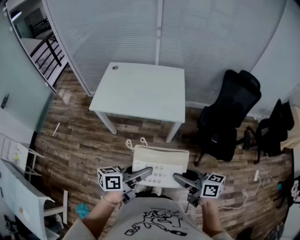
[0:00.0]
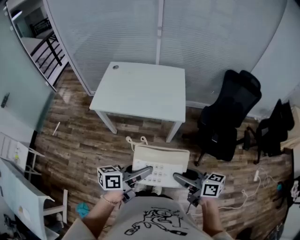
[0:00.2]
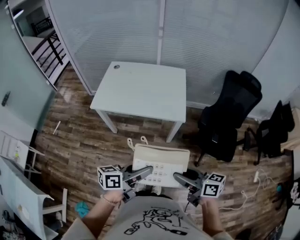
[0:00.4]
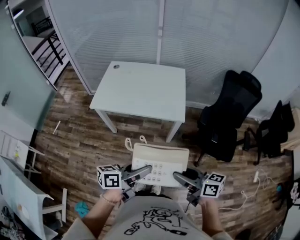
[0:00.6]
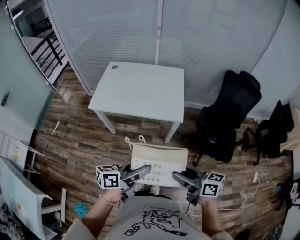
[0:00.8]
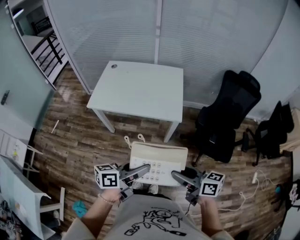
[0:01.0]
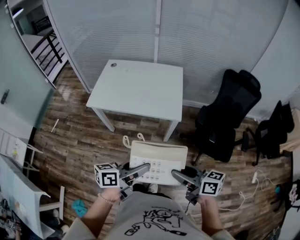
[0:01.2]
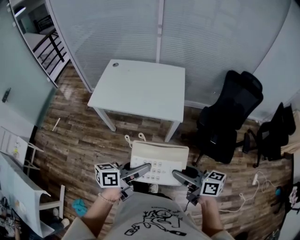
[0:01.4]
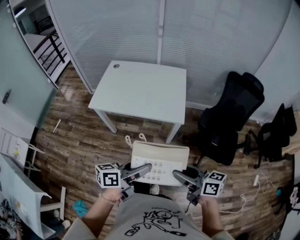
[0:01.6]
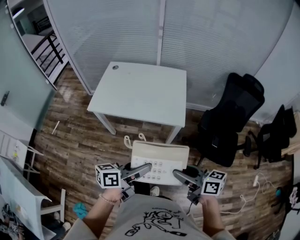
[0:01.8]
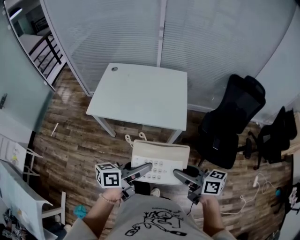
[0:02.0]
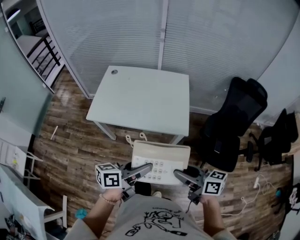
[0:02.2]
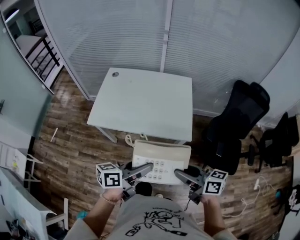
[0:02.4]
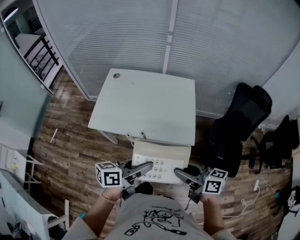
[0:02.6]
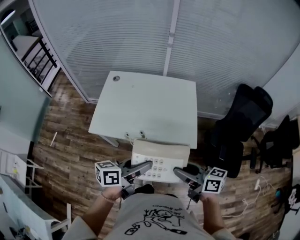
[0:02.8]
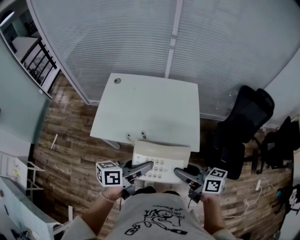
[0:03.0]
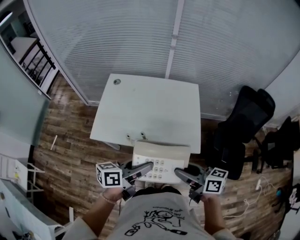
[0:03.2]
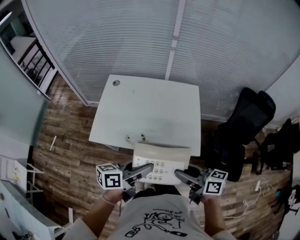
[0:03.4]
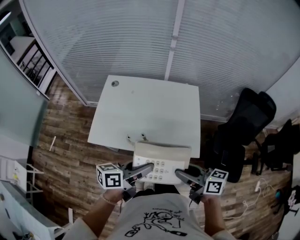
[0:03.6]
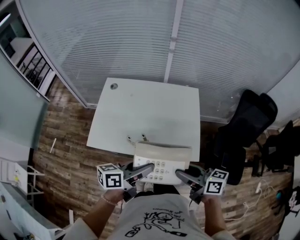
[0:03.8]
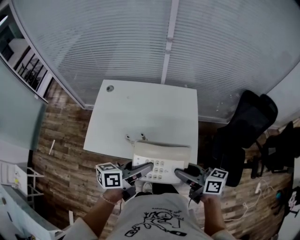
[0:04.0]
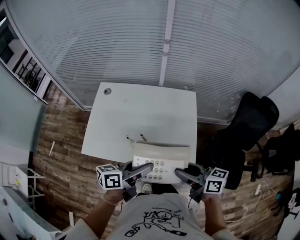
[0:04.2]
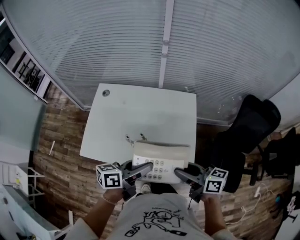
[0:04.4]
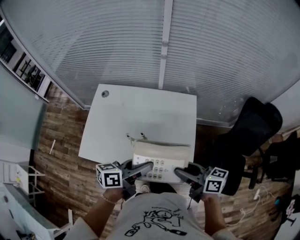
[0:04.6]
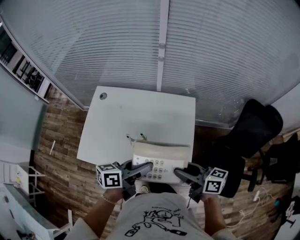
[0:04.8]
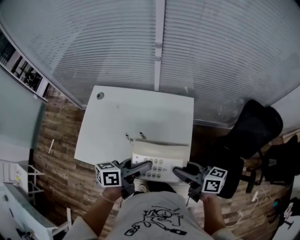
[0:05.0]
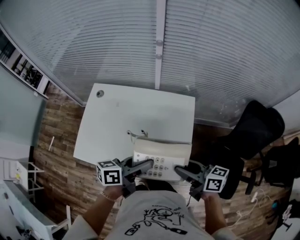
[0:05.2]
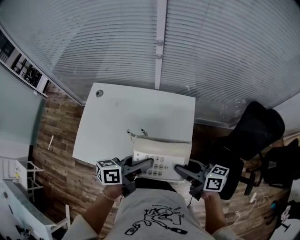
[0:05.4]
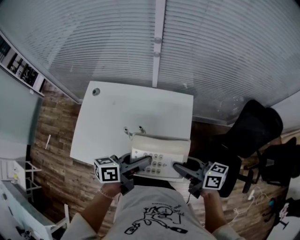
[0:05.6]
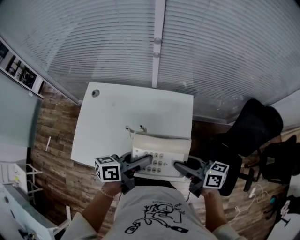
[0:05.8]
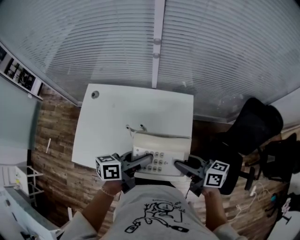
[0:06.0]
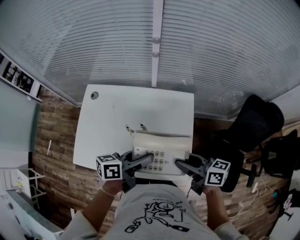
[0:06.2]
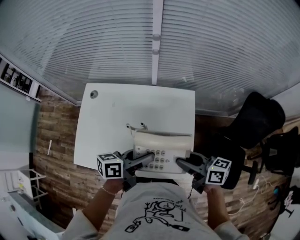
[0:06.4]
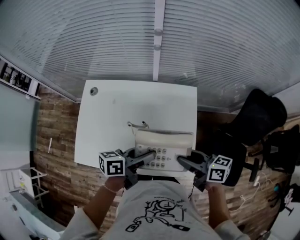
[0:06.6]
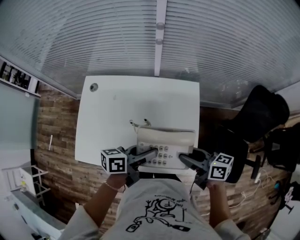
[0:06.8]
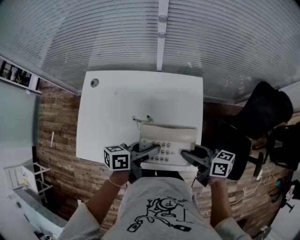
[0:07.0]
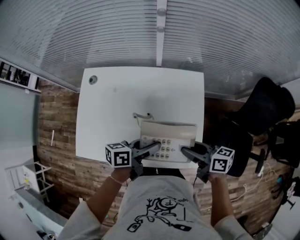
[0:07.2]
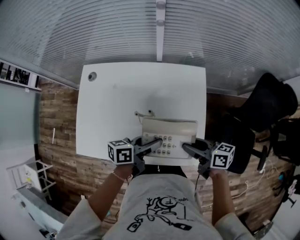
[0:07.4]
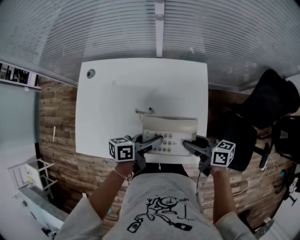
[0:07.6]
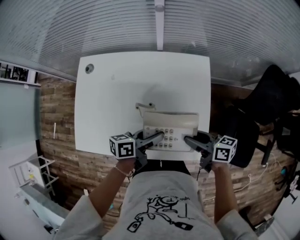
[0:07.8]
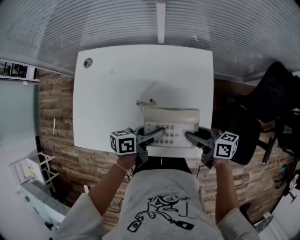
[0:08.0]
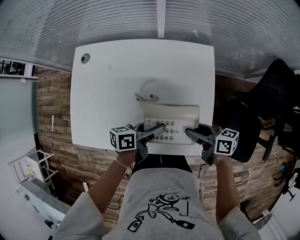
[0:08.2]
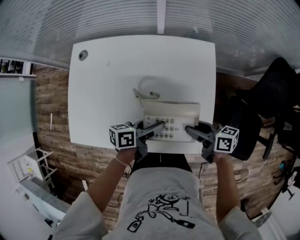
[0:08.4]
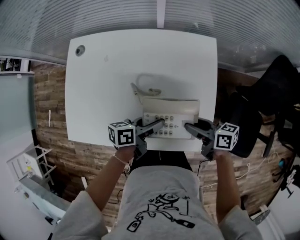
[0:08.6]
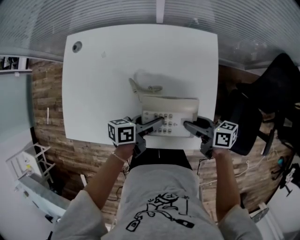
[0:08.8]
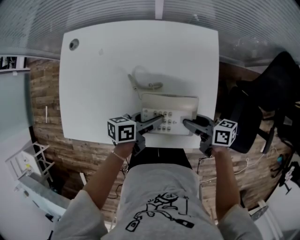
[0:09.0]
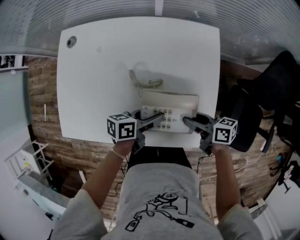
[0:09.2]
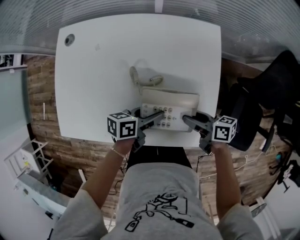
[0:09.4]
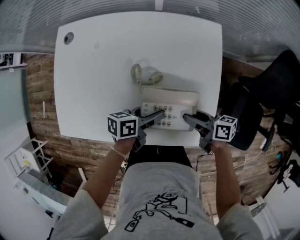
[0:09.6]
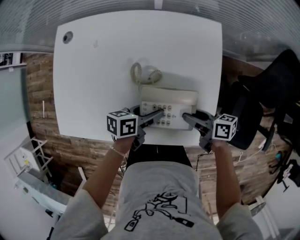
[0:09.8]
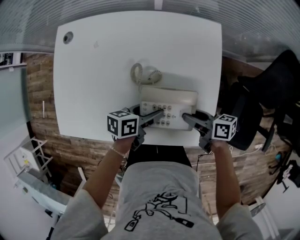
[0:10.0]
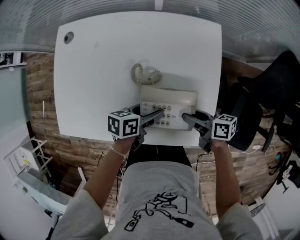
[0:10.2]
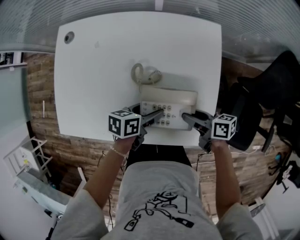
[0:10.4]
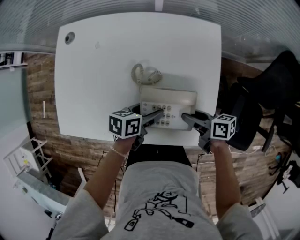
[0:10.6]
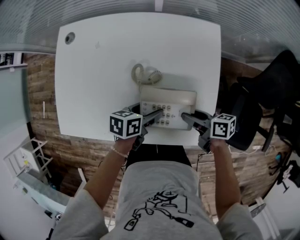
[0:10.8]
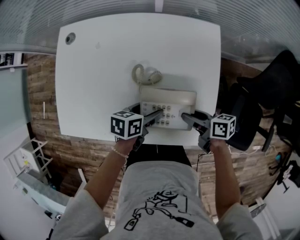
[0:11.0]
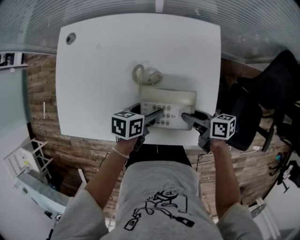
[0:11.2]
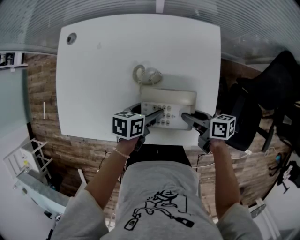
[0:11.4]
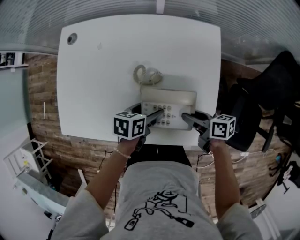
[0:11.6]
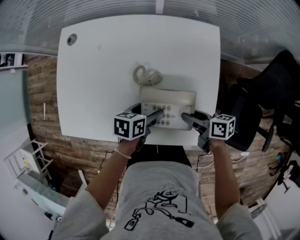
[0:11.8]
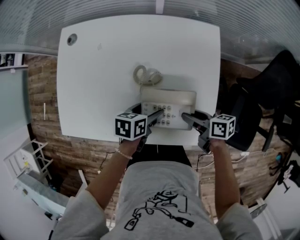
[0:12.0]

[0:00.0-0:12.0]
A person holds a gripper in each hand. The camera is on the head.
0:00.0 to 0:01.6: The grippers stay close to where they were, moving slightly.
0:01.6 to 0:03.0: The two grippers go roughly 25 cm forward and to the left.
0:03.0 to 0:04.4: Both grippers travel together forward, roughly 15 cm.
0:04.4 to 0:06.0: The two grippers go approximately 10 cm forward.
0:06.0 to 0:07.6: The grippers both shift downward by approximately 15 cm.
0:07.6 to 0:09.0: Both grippers move downward, roughly 10 cm.
0:09.0 to 0:10.4: There are only small adjustments of the grippers.
0:10.4 to 0:12.0: The grippers stay close to where they were, moving slightly.

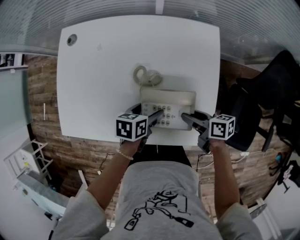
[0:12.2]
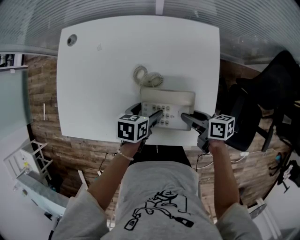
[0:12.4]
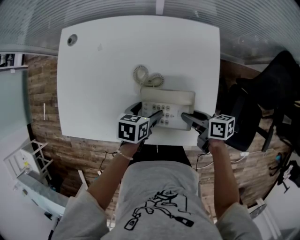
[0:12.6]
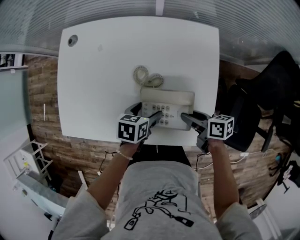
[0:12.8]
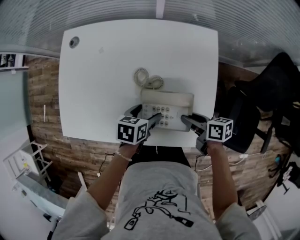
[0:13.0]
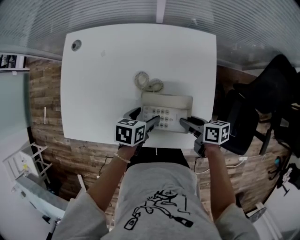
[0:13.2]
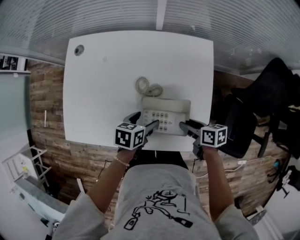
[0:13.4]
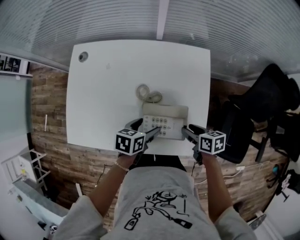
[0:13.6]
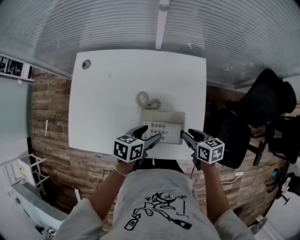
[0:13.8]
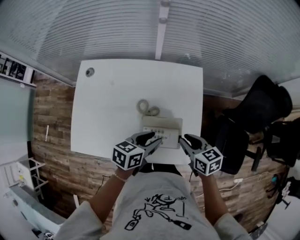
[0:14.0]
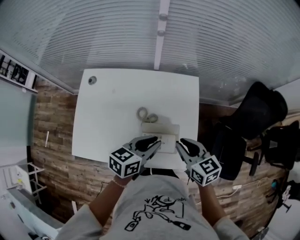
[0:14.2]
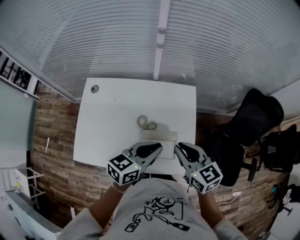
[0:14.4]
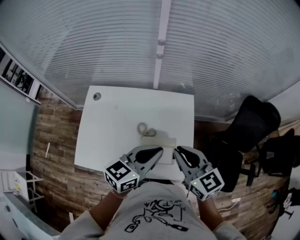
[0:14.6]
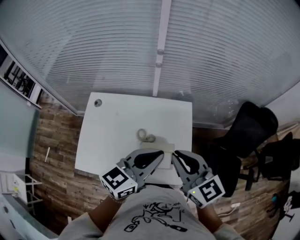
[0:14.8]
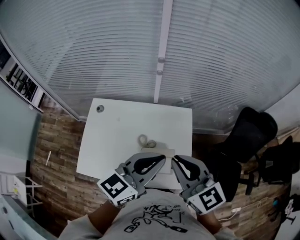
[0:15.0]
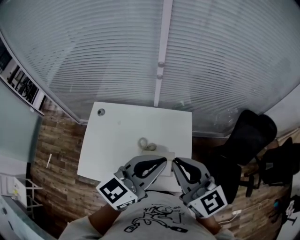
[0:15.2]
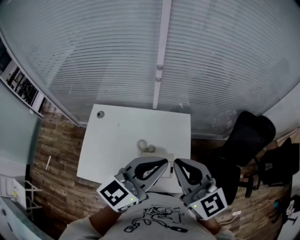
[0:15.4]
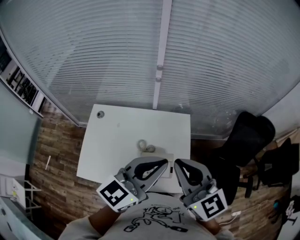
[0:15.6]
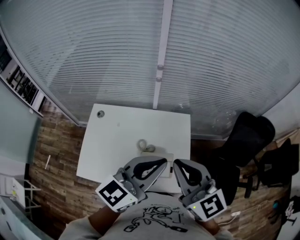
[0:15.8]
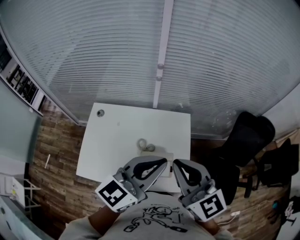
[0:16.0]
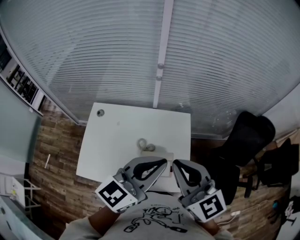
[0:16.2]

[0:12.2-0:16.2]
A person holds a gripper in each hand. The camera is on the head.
0:12.2 to 0:13.6: The left gripper is displaced upward by some 5 cm.
0:13.6 to 0:14.8: Both grippers travel together upward, approximately 35 cm. The right gripper points its fingers some 40 degrees further upward, and closes up; the left gripper tips its fingers upward by roughly 40 degrees, and closes up.
0:14.8 to 0:16.2: The grippers both shift upward by about 10 cm.

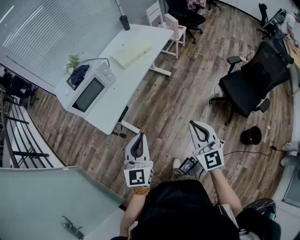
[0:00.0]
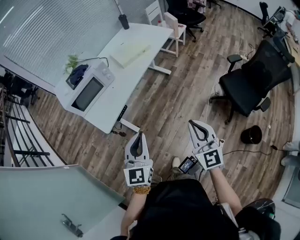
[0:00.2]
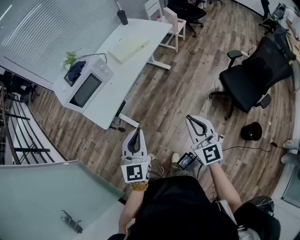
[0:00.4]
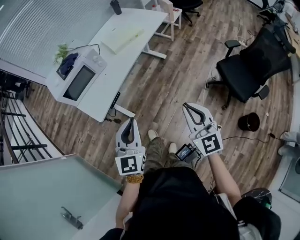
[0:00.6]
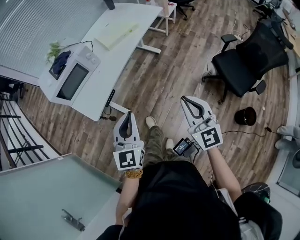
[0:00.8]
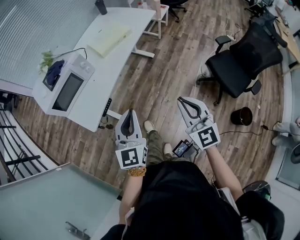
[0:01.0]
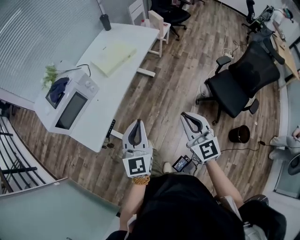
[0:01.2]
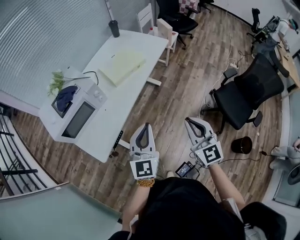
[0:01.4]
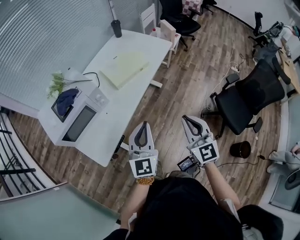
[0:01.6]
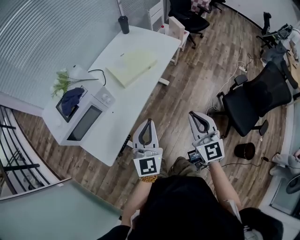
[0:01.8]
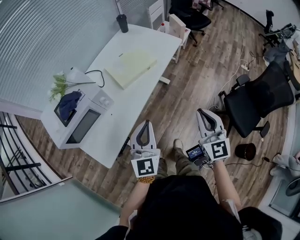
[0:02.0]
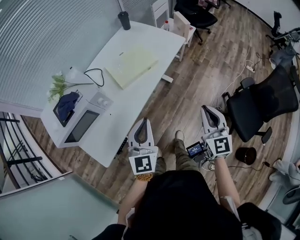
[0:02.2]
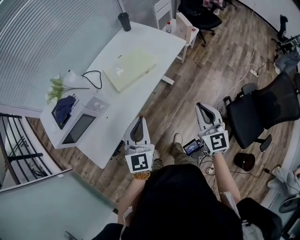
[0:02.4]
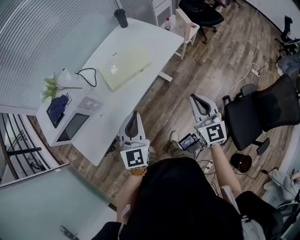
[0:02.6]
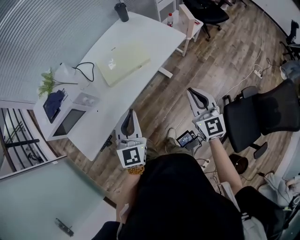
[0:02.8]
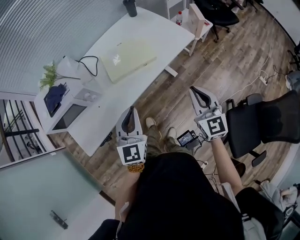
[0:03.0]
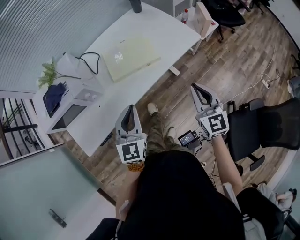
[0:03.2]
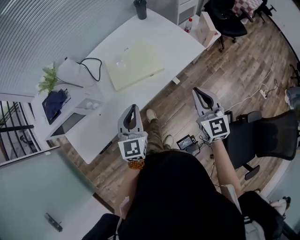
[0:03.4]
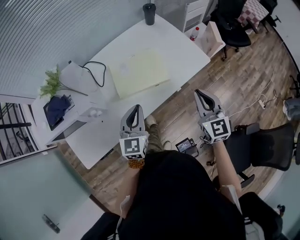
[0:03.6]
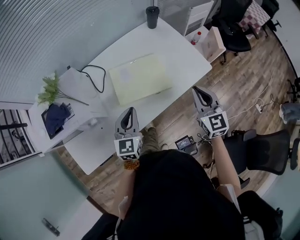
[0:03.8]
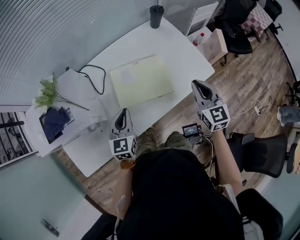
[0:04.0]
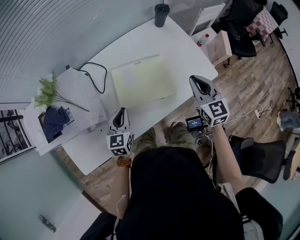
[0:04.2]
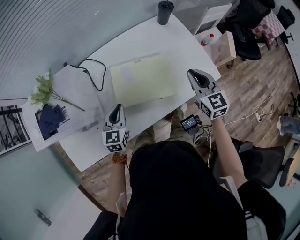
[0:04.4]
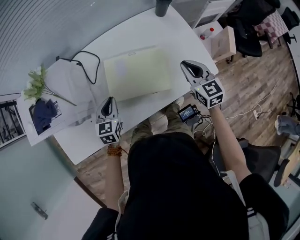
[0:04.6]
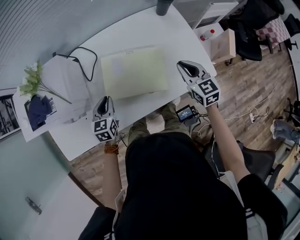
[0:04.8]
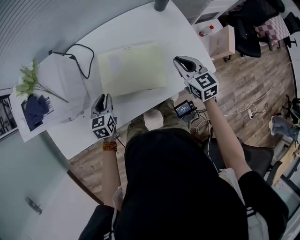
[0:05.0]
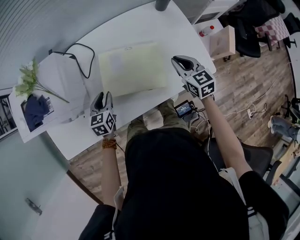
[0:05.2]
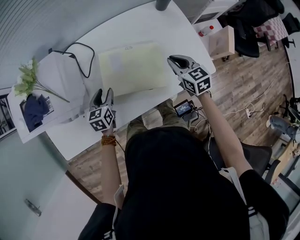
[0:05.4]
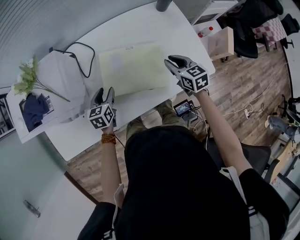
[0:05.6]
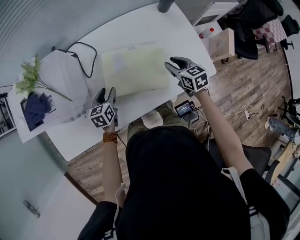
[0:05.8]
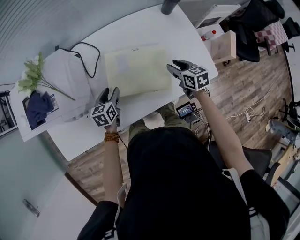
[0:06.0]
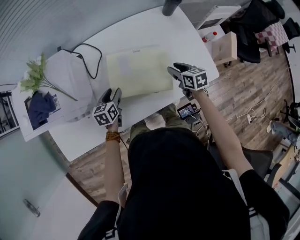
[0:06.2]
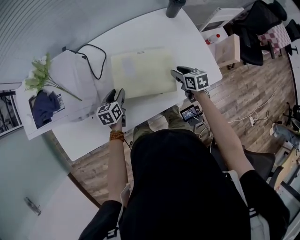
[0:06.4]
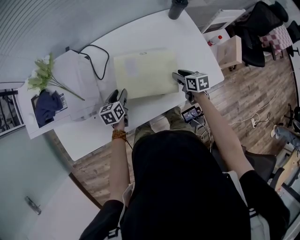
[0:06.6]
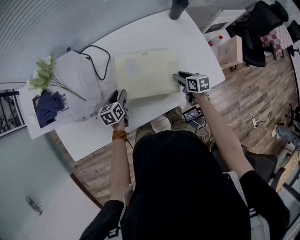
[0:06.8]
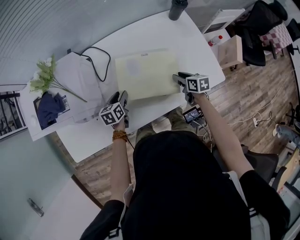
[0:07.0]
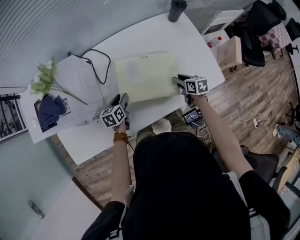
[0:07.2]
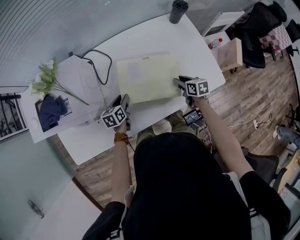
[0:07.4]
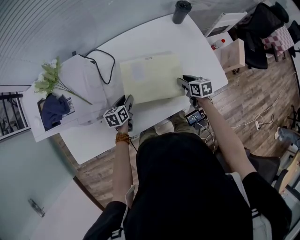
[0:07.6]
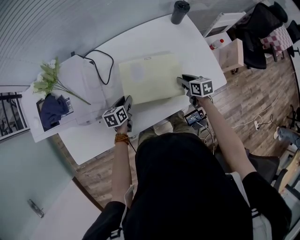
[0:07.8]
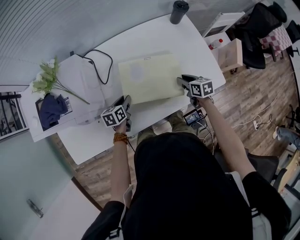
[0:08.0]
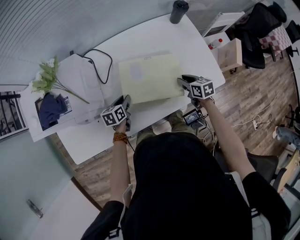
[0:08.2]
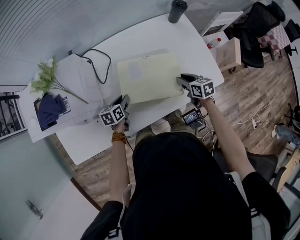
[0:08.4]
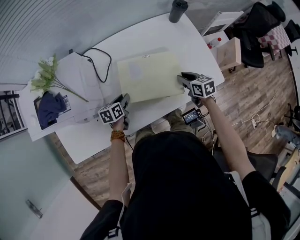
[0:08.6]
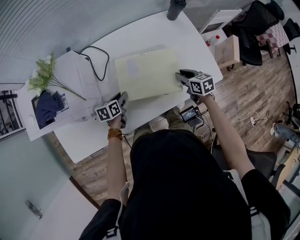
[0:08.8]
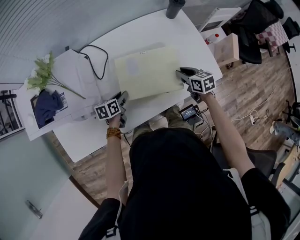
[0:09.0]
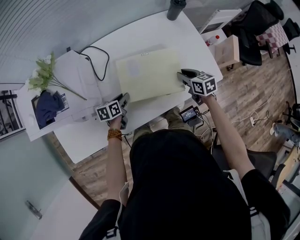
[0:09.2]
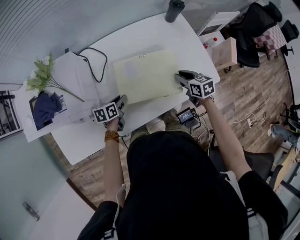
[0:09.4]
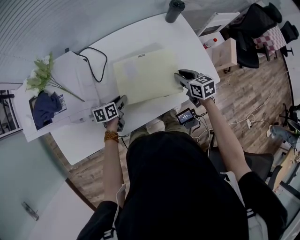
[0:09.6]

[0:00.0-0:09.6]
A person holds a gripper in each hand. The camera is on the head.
0:00.0 to 0:01.6: The two grippers go approximately 25 cm forward.
0:01.6 to 0:03.2: The right gripper travels forward and to the right by roughly 35 cm. Meanwhile the left gripper travels forward and to the right by about 20 cm, and changes its angle by roughly 20 degrees.
0:03.2 to 0:04.8: The left gripper heads forward and downward, covering approximately 30 cm, and turns by about 30 degrees. The right gripper moves forward, about 35 cm, and rotates some 30 degrees.
0:04.8 to 0:06.4: The right gripper shifts approximately 15 cm downward, turns by approximately 30 degrees, and opens its fingers. Meanwhile the left gripper shifts approximately 5 cm downward, and opens up.
0:06.4 to 0:08.0: The grippers stay close to where they were, moving slightly.
0:08.0 to 0:09.6: The right gripper moves upward, approximately 5 cm.
